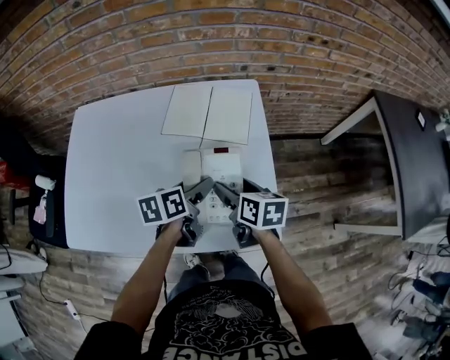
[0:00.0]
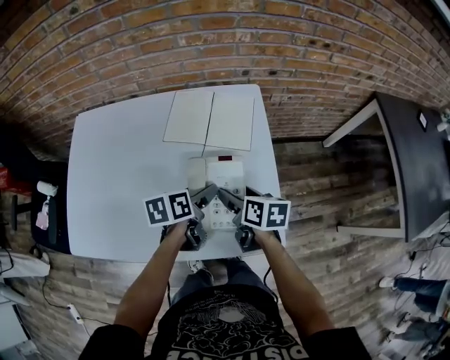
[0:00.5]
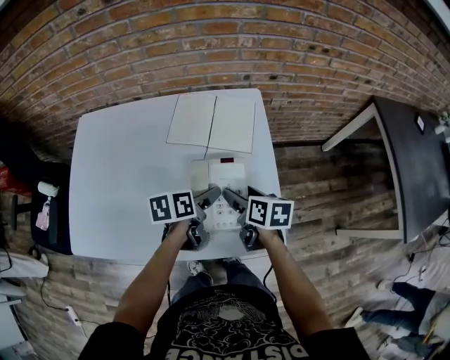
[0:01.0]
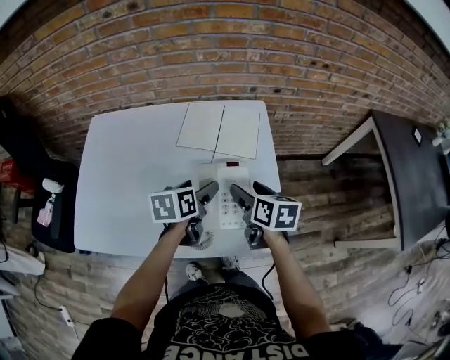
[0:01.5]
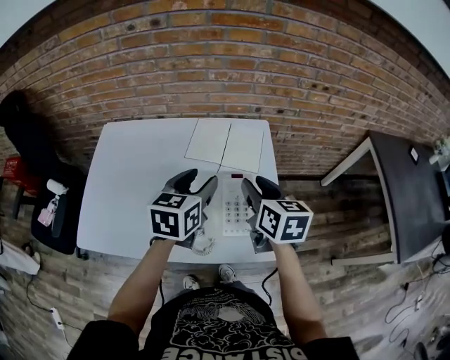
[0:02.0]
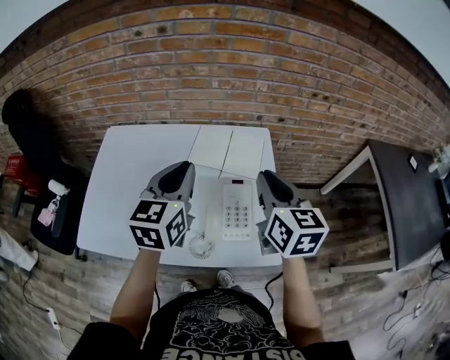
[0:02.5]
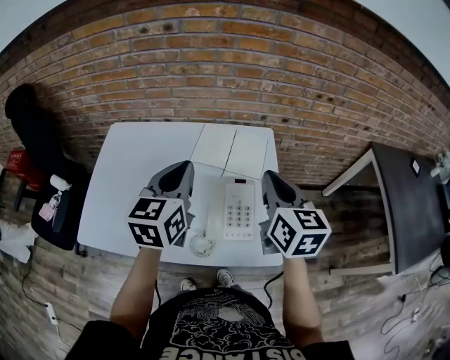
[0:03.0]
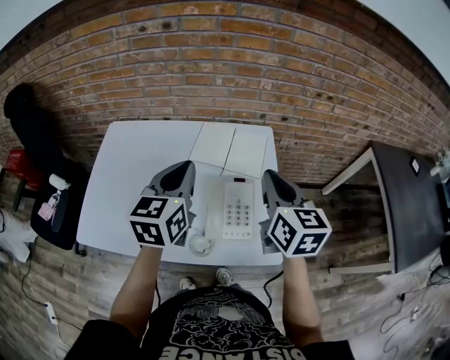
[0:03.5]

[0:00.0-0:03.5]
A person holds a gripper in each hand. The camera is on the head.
0:00.0 to 0:02.0: Both grippers move upward, approximately 15 cm. The left gripper changes its angle by about 40 degrees, and closes its fingers. Meanwhile the right gripper rotates approximately 20 degrees, and closes its fingers.
0:02.0 to 0:03.5: Both grippers move upward, some 10 cm. The right gripper closes up; the left gripper closes up.

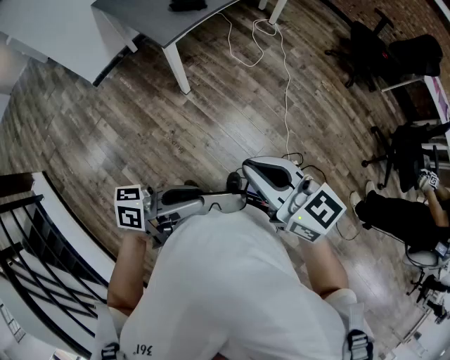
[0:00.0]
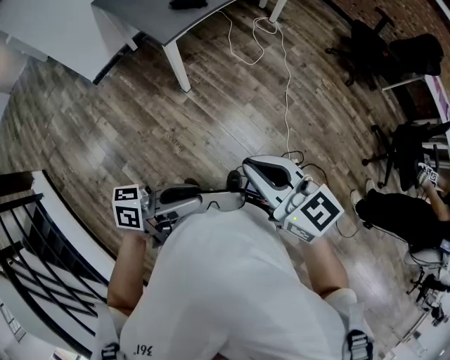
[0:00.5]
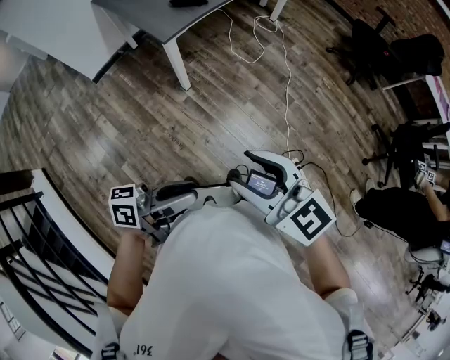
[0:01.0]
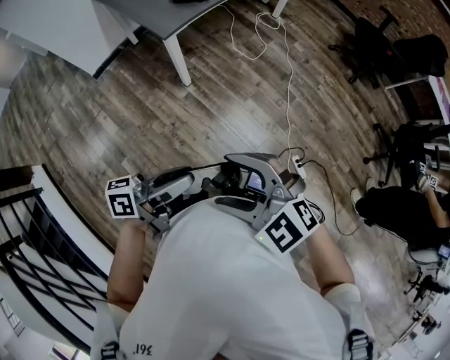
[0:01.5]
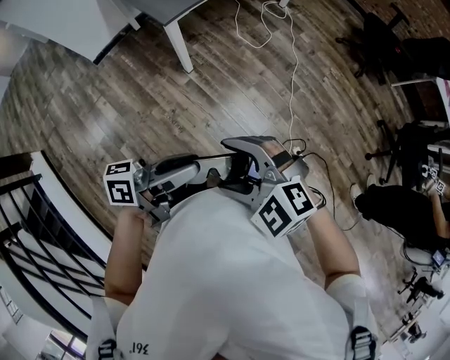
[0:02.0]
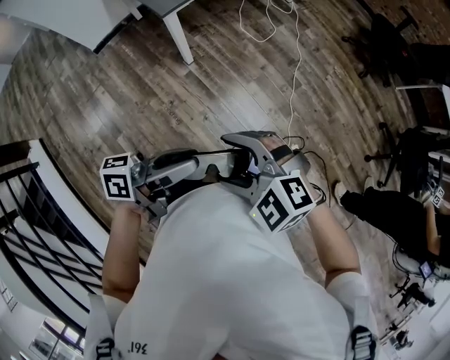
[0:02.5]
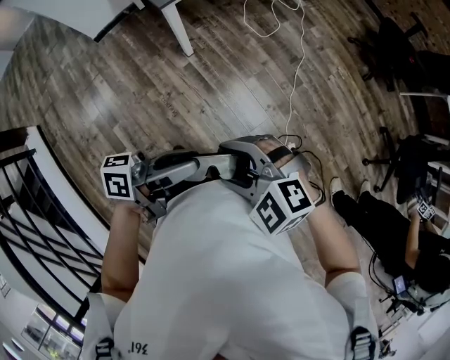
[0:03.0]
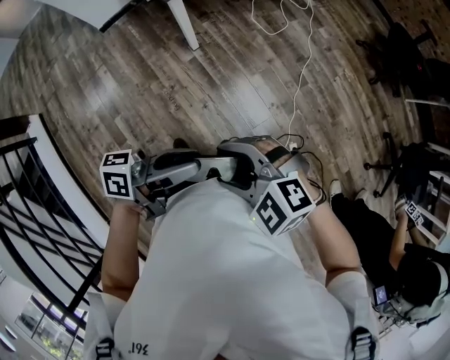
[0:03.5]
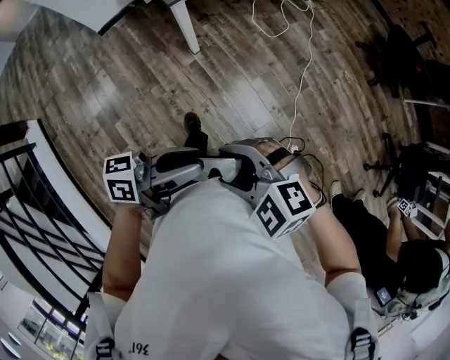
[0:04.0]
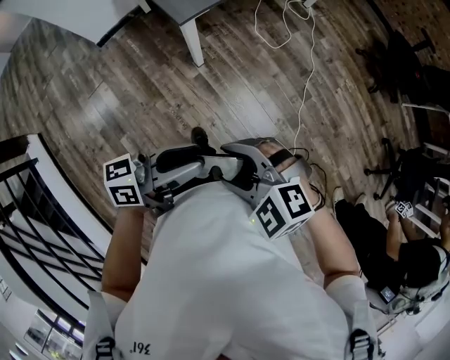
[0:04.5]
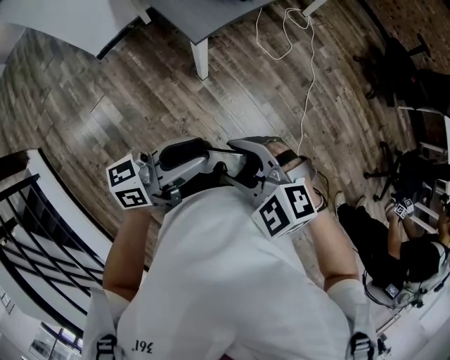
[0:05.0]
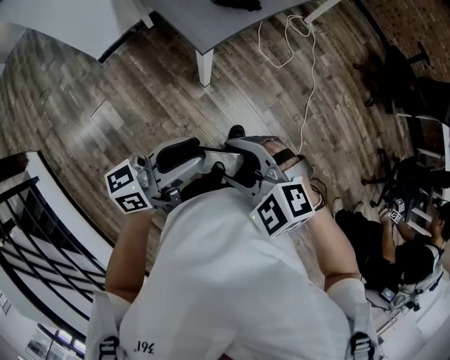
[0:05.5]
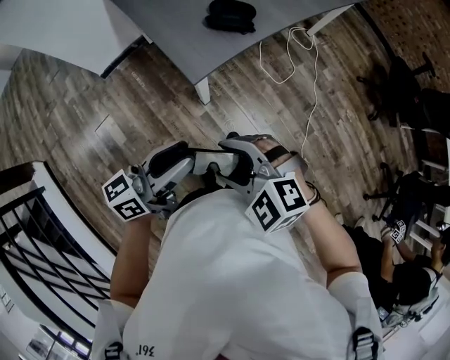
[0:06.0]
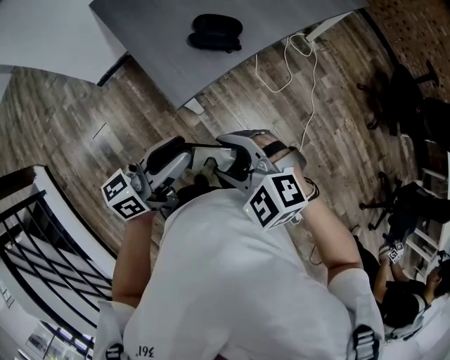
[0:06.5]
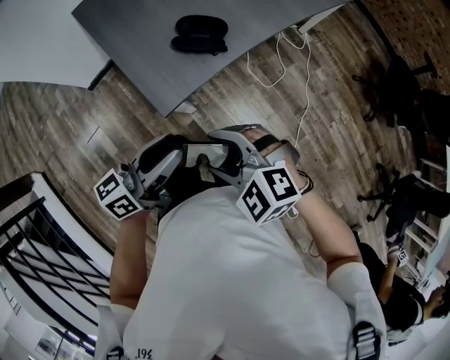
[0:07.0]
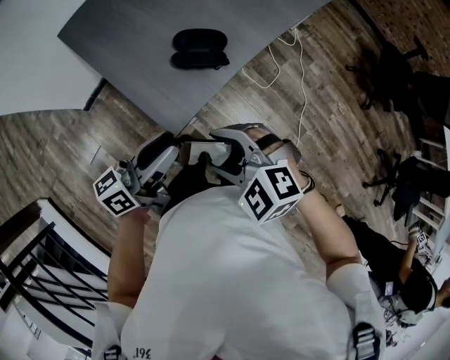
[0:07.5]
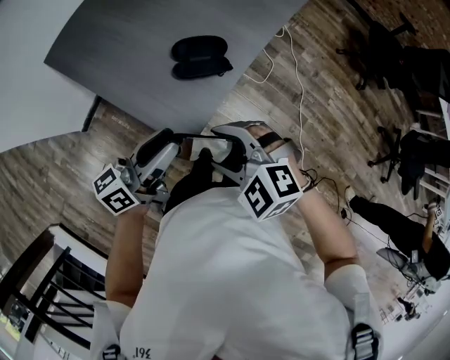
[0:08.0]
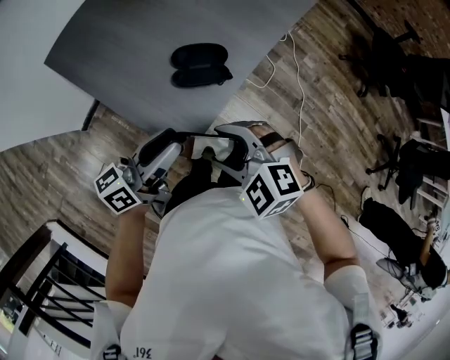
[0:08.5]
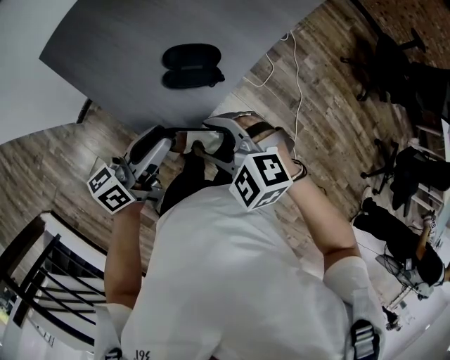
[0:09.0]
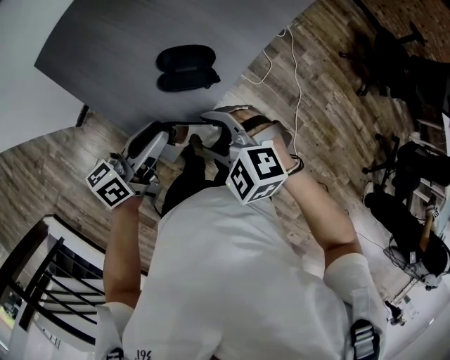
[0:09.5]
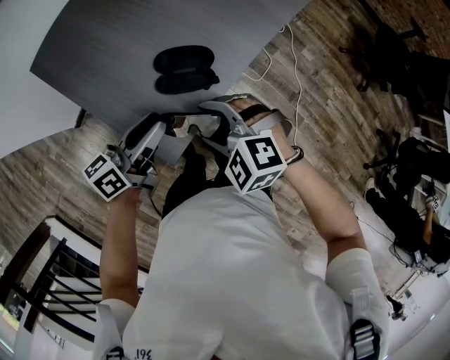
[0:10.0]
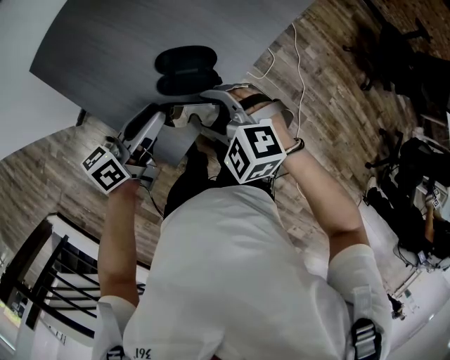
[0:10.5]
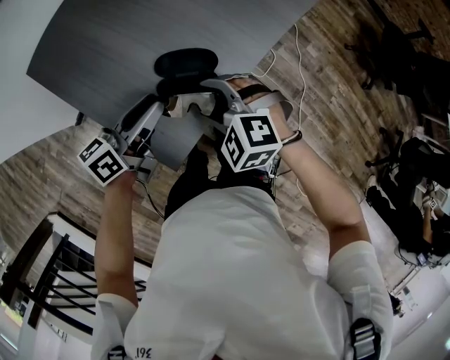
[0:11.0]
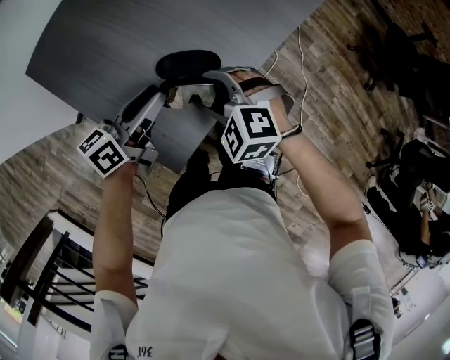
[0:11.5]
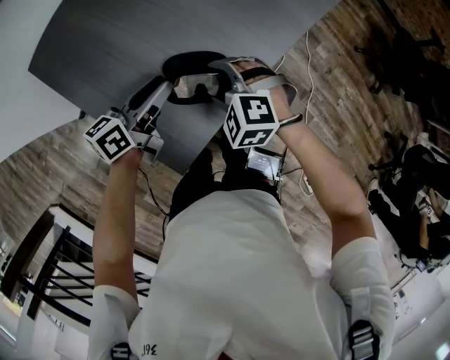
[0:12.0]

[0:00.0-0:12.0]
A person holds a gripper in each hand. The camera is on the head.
0:00.0 to 0:02.0: The right gripper shifts roughly 5 cm downward, twists some 50 degrees counterclockwise, seen from behind, and opens. The left gripper shifts by about 5 cm.
0:02.0 to 0:04.0: The left gripper shifts by roughly 5 cm. Meanwhile the right gripper changes place by approximately 5 cm.
0:04.0 to 0:06.0: The left gripper changes place by some 30 cm, and swivels some 30 degrees. The right gripper moves roughly 30 cm.
0:06.0 to 0:08.0: Both grippers move forward, approximately 25 cm.
0:08.0 to 0:10.0: The grippers both shift forward by roughly 10 cm.
0:10.0 to 0:12.0: The left gripper moves forward, about 10 cm, while the right gripper travels forward and downward by some 15 cm.

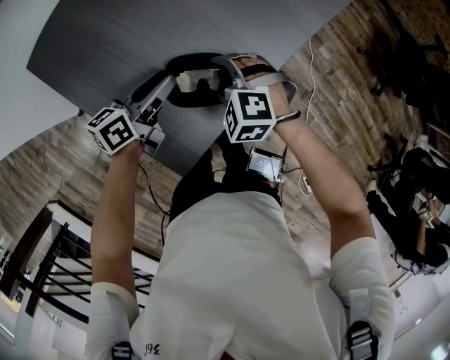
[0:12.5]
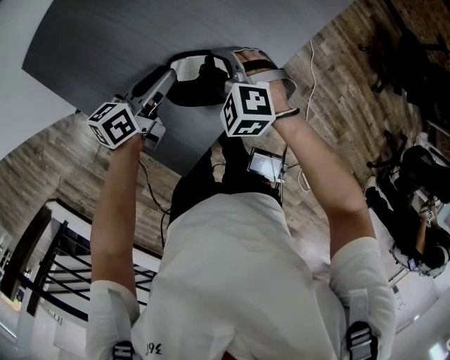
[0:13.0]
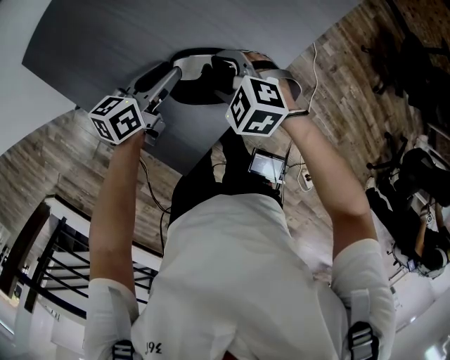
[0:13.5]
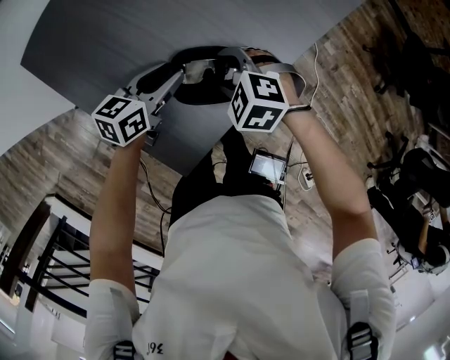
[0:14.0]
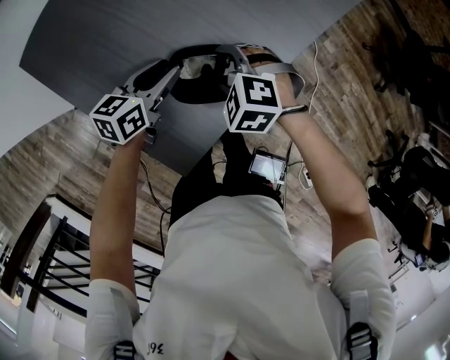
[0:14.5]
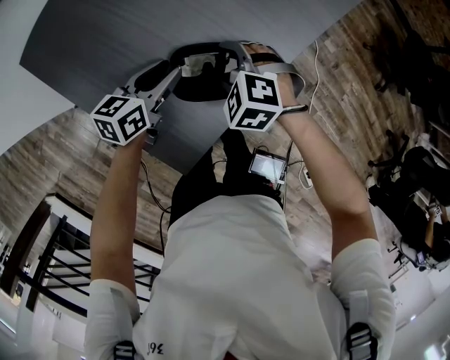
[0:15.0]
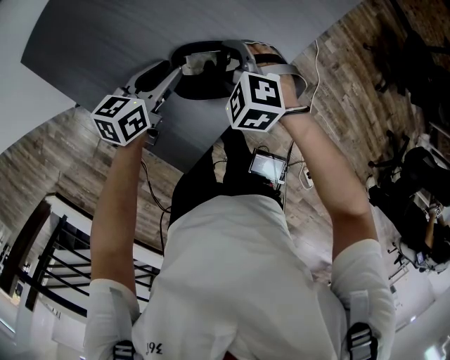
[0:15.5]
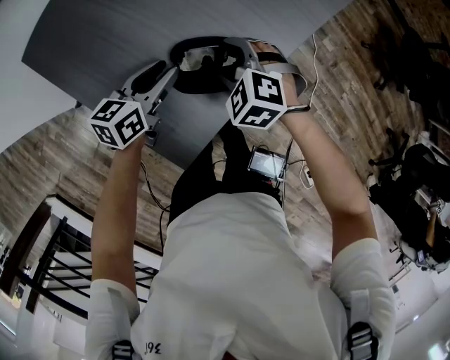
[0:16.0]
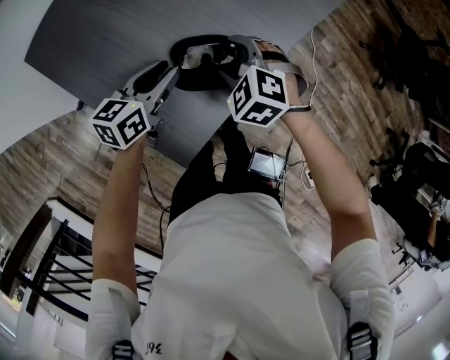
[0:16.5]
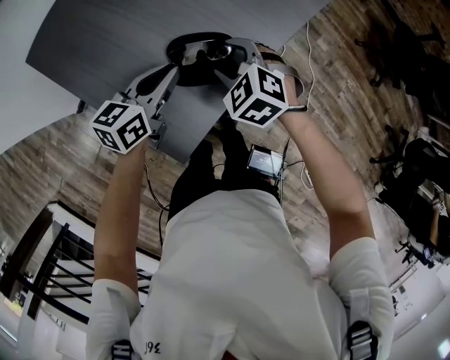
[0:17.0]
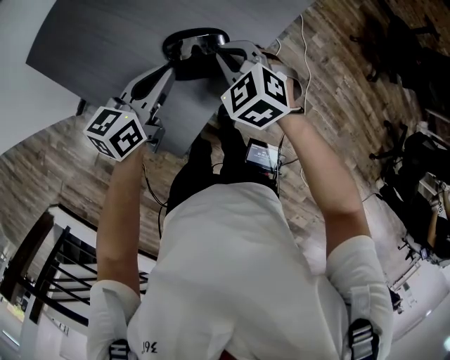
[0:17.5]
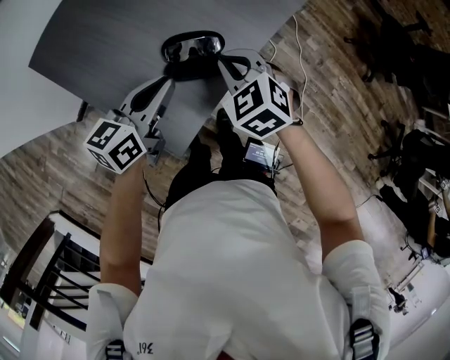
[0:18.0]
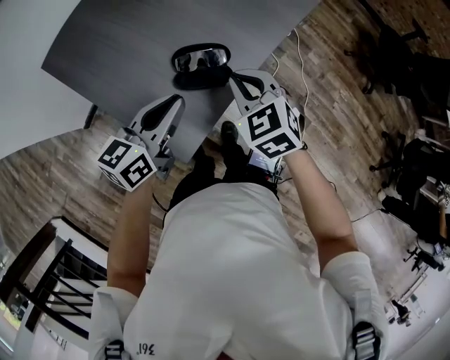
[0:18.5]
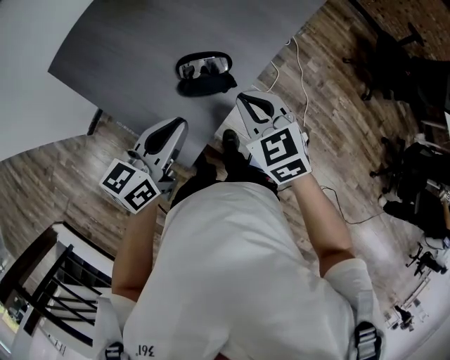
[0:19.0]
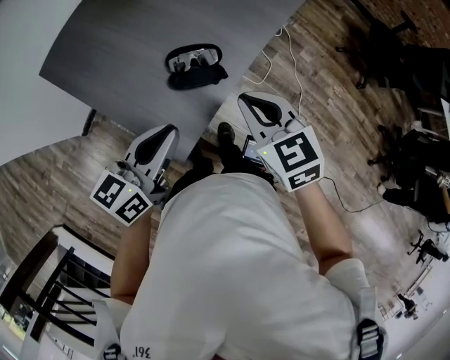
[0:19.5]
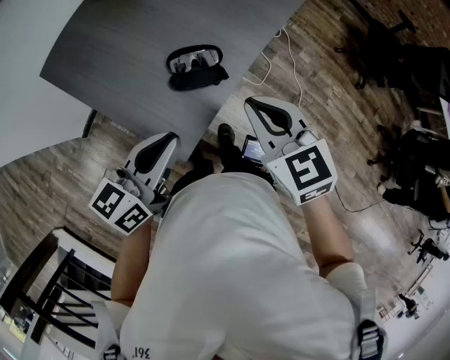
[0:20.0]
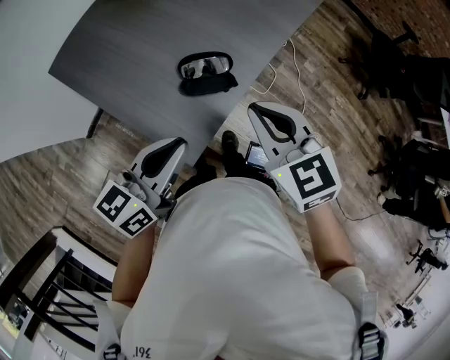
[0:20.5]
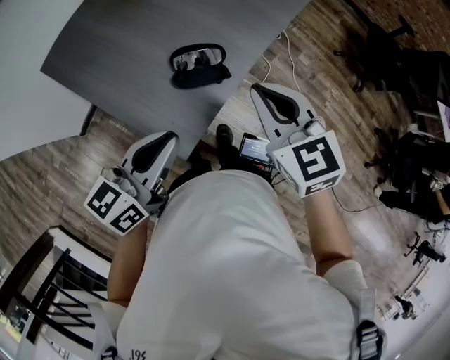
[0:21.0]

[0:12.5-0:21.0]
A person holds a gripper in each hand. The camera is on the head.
0:12.5 to 0:16.5: There are only small adjustments of the grippers.
0:16.5 to 0:19.0: The right gripper heads upward, backward and to the right, covering approximately 15 cm, turns by approximately 40 degrees, and closes up. Meanwhile the left gripper heads upward and backward, covering approximately 20 cm, and closes its fingers.
0:19.0 to 0:21.0: The left gripper ends up approximately 5 cm from where it was, while the right gripper heads upward, covering some 10 cm.

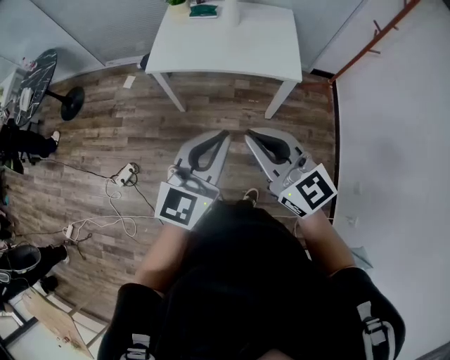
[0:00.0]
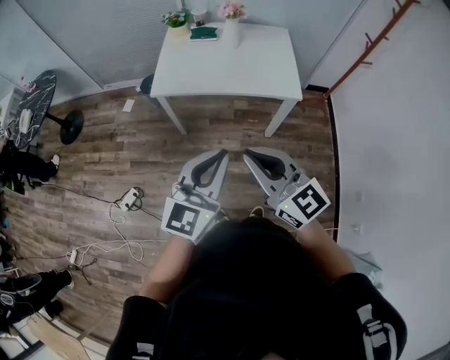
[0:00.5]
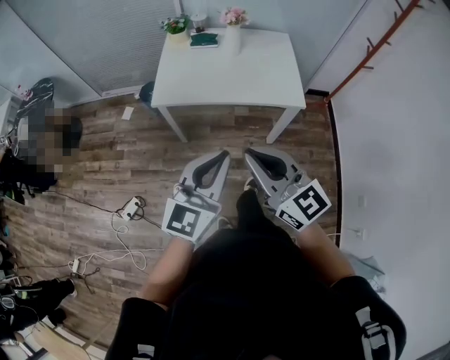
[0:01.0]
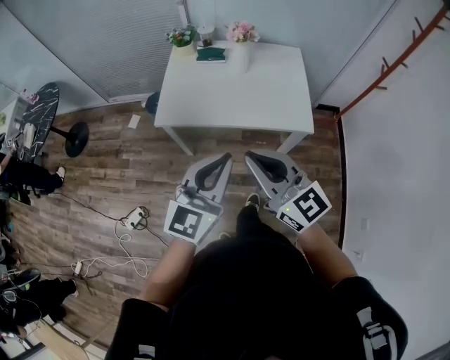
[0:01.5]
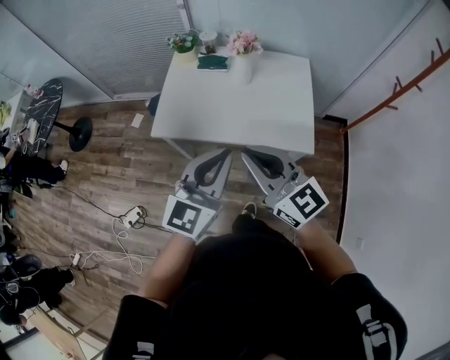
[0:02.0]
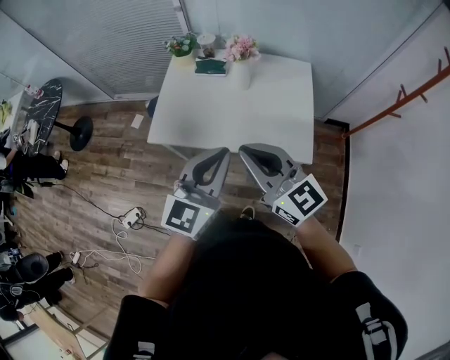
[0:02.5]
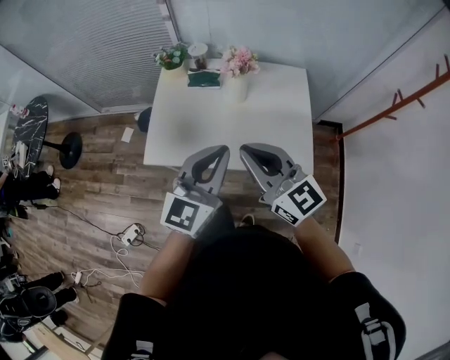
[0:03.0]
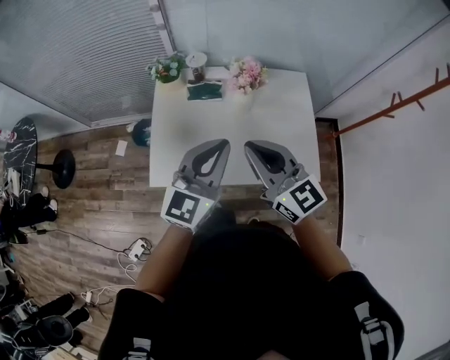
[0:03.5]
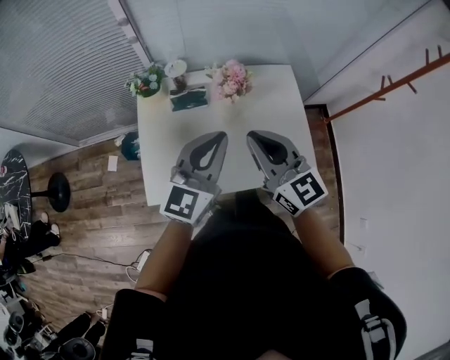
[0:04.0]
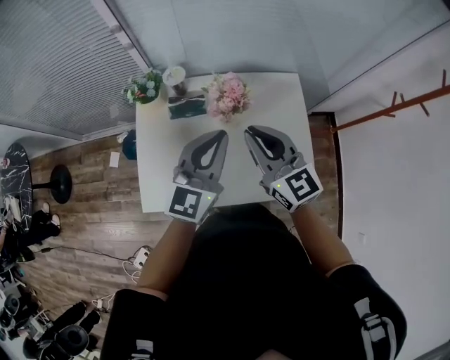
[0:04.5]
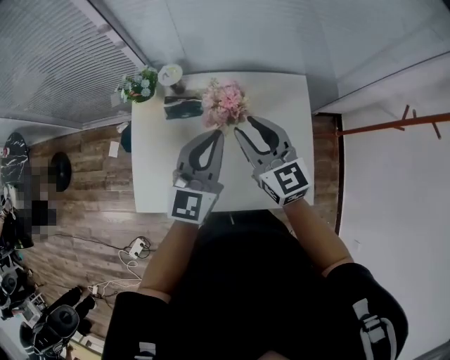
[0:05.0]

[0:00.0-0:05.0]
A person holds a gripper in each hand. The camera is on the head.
0:00.0 to 0:02.5: The two grippers go roughly 35 cm forward.
0:02.5 to 0:05.0: The grippers both shift forward by about 40 cm. The right gripper turns by about 20 degrees, and opens its fingers.
